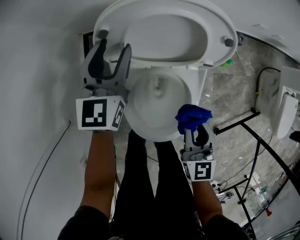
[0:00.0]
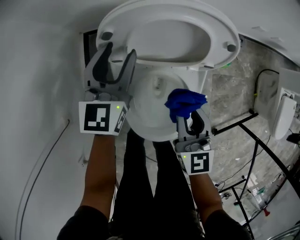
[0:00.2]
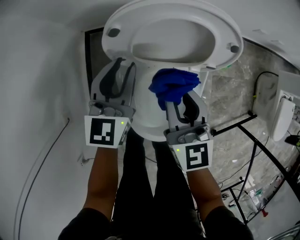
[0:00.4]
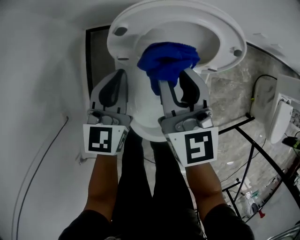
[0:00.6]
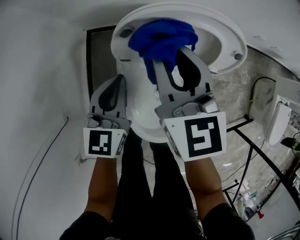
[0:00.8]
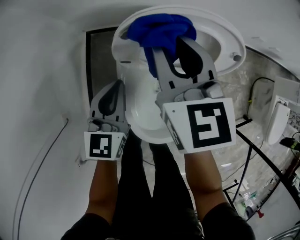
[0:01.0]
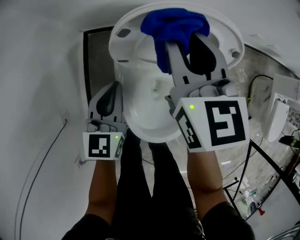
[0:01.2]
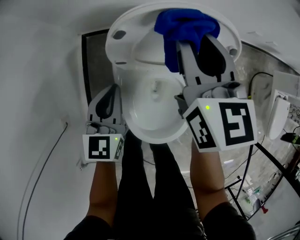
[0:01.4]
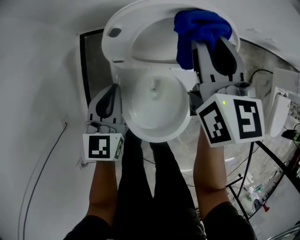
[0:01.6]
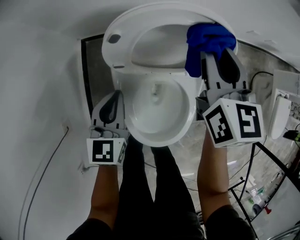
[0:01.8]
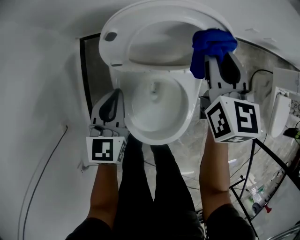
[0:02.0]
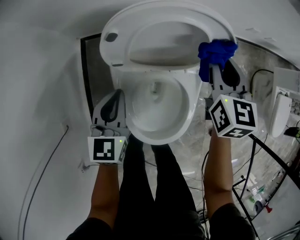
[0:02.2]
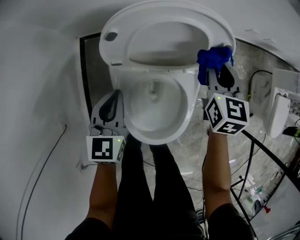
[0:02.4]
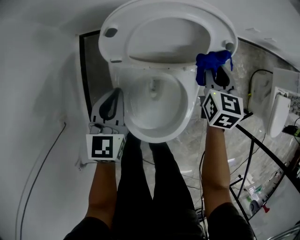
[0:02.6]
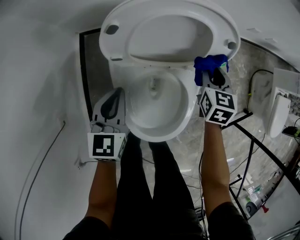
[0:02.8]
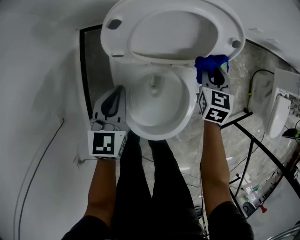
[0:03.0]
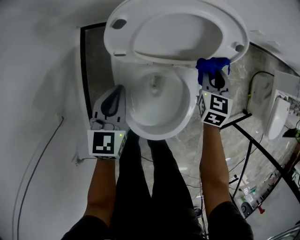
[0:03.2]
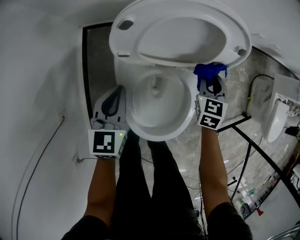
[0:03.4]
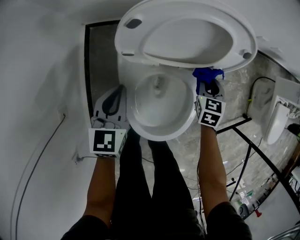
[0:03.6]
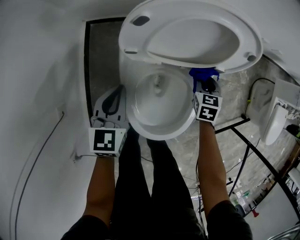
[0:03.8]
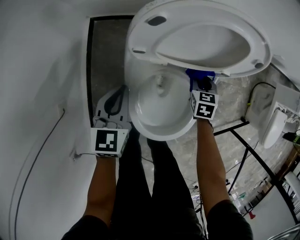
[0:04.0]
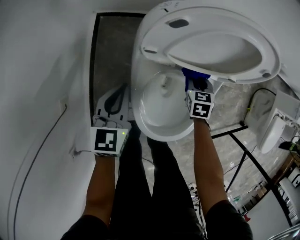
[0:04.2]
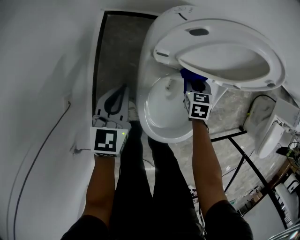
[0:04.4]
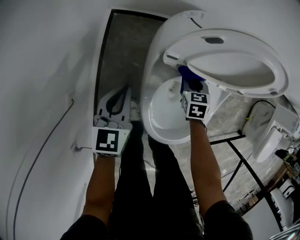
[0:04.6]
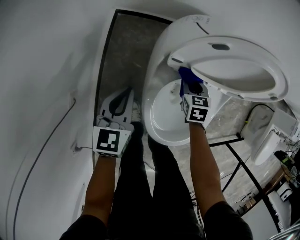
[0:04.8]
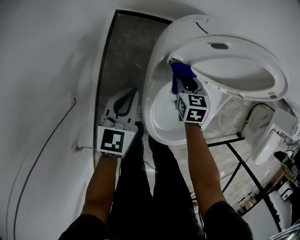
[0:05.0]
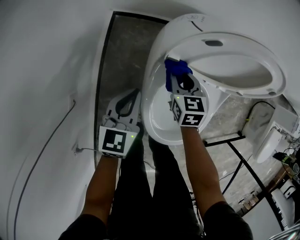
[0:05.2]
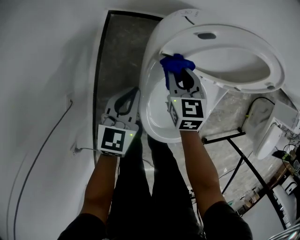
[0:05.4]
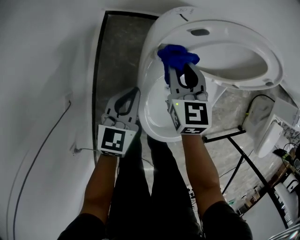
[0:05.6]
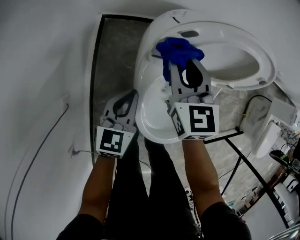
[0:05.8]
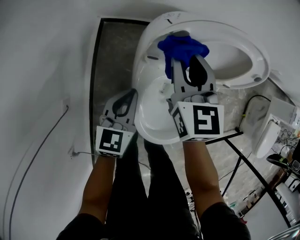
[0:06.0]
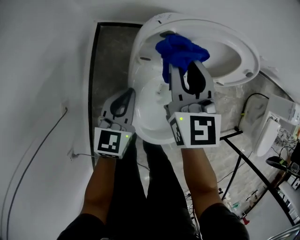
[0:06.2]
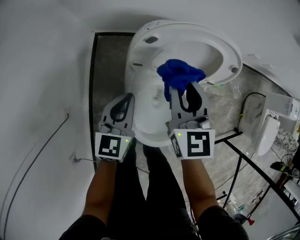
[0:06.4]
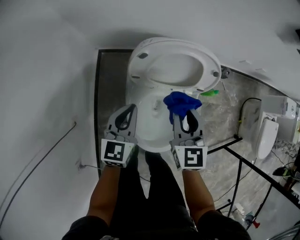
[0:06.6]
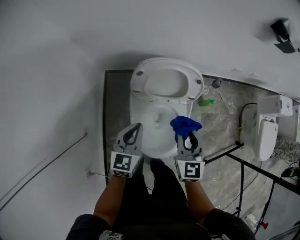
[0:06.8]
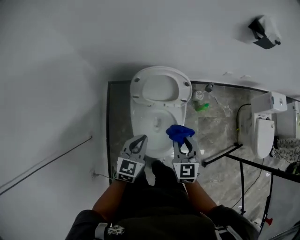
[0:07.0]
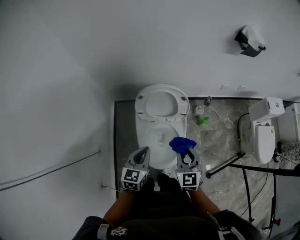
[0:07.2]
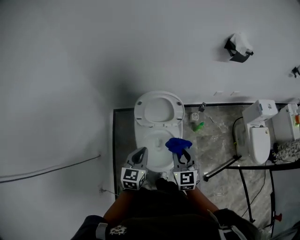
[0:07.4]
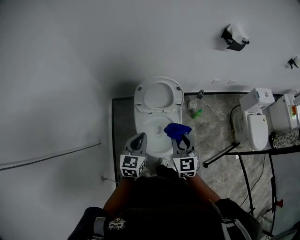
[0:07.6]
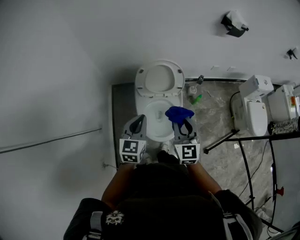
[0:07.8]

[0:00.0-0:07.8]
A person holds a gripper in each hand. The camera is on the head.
0:00.0 to 0:01.6: The left gripper is displaced backward by approximately 10 cm, and closes up. The right gripper moves forward and upward, some 25 cm.
0:01.6 to 0:03.2: The right gripper moves downward and to the right, about 25 cm, and changes its angle by approximately 30 degrees.
0:03.2 to 0:04.6: The right gripper moves to the left and downward, roughly 25 cm, and rotates roughly 30 degrees; the left gripper shifts roughly 10 cm to the left.
0:04.6 to 0:06.2: The right gripper travels upward by roughly 30 cm, and angles its fingers upward, by some 40 degrees, while the left gripper is displaced to the right by about 10 cm.
0:06.2 to 0:07.8: The right gripper travels backward, upward and to the right by approximately 35 cm; the left gripper shifts roughly 35 cm upward and backward.

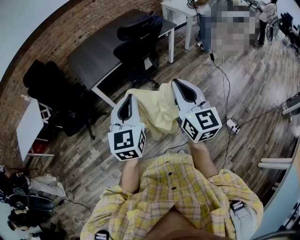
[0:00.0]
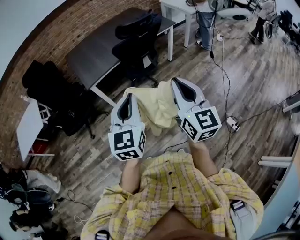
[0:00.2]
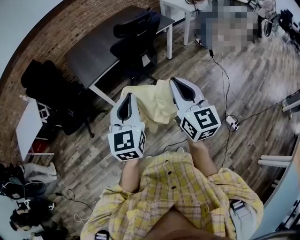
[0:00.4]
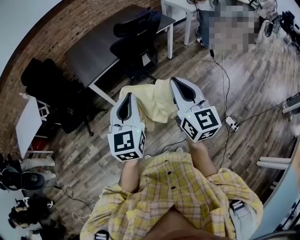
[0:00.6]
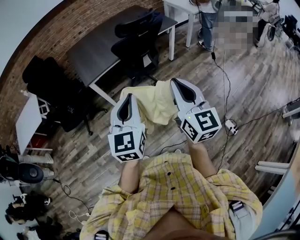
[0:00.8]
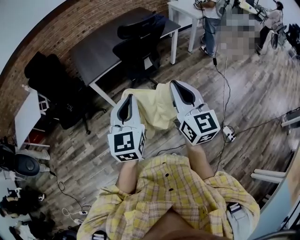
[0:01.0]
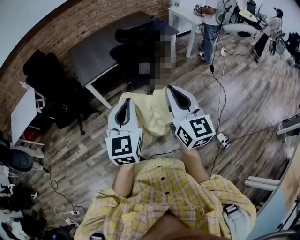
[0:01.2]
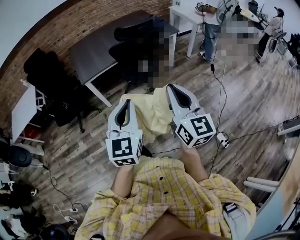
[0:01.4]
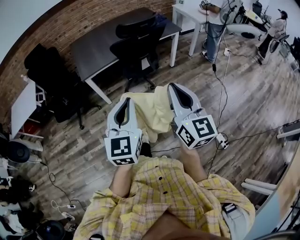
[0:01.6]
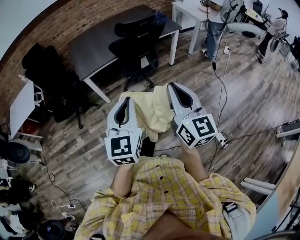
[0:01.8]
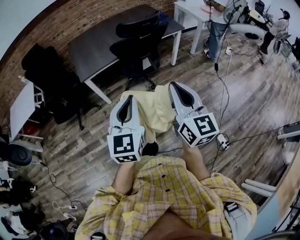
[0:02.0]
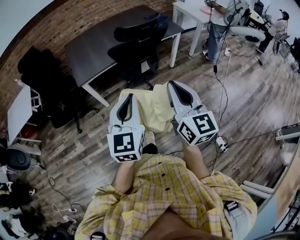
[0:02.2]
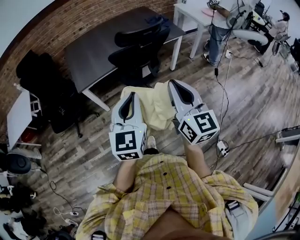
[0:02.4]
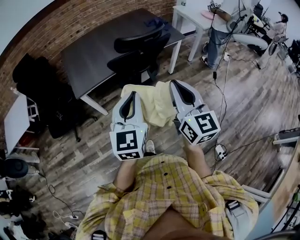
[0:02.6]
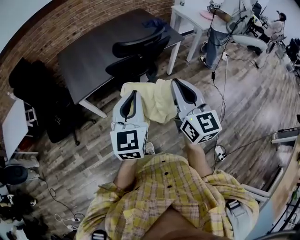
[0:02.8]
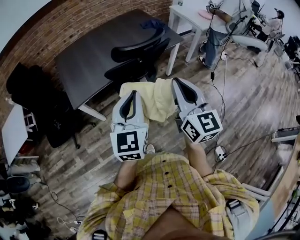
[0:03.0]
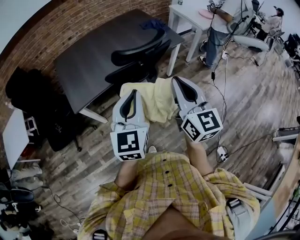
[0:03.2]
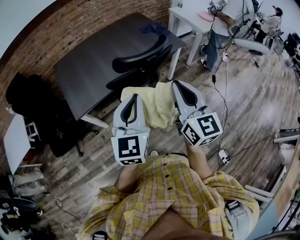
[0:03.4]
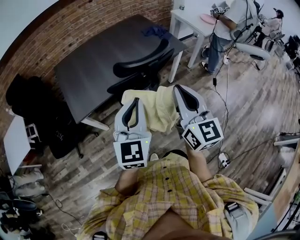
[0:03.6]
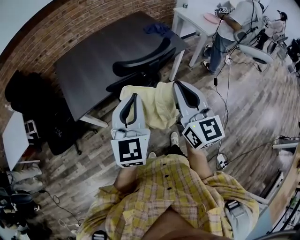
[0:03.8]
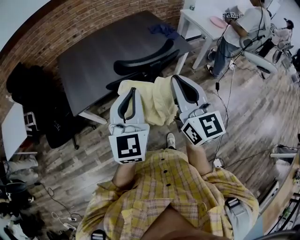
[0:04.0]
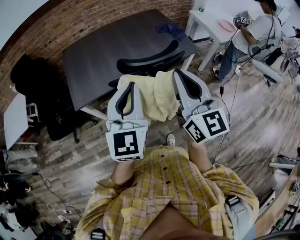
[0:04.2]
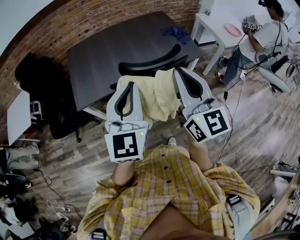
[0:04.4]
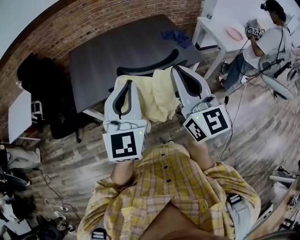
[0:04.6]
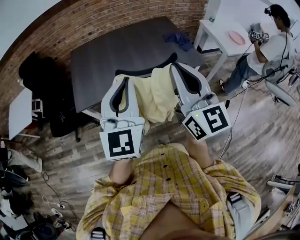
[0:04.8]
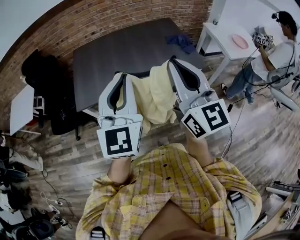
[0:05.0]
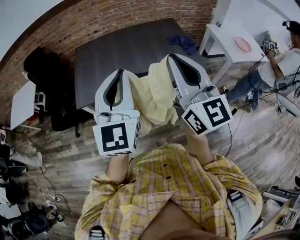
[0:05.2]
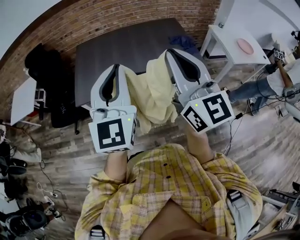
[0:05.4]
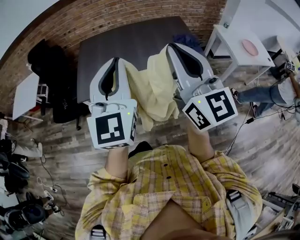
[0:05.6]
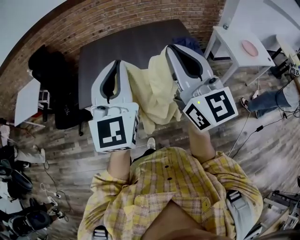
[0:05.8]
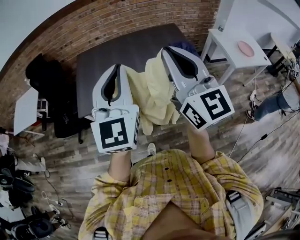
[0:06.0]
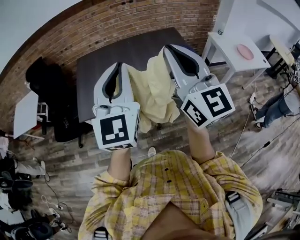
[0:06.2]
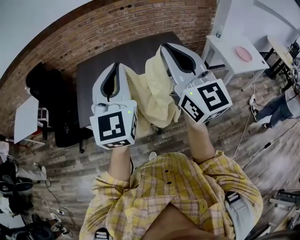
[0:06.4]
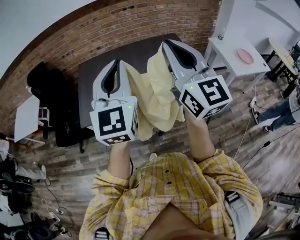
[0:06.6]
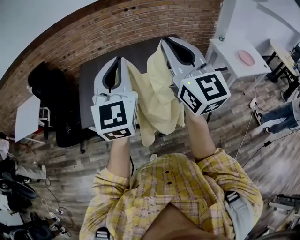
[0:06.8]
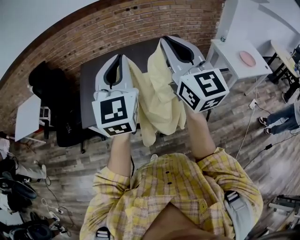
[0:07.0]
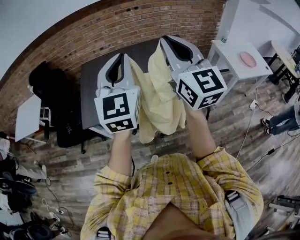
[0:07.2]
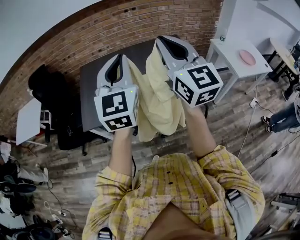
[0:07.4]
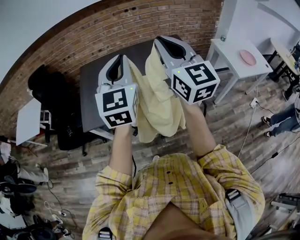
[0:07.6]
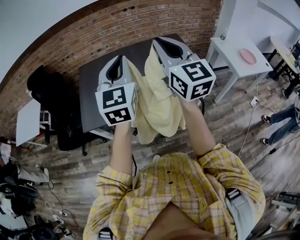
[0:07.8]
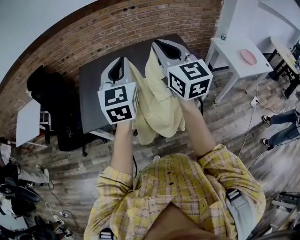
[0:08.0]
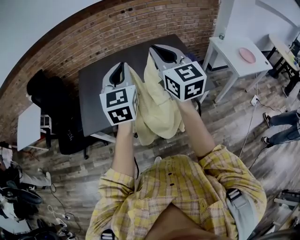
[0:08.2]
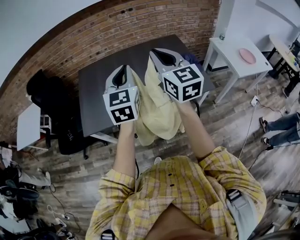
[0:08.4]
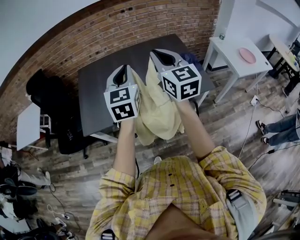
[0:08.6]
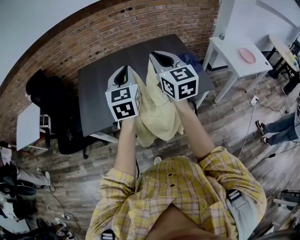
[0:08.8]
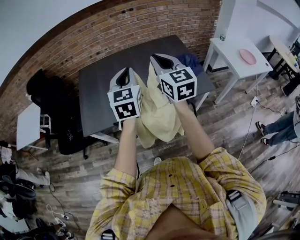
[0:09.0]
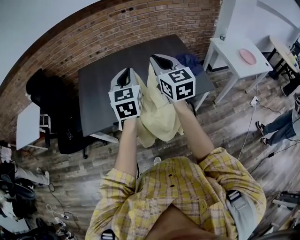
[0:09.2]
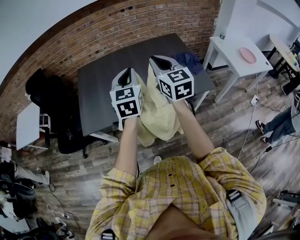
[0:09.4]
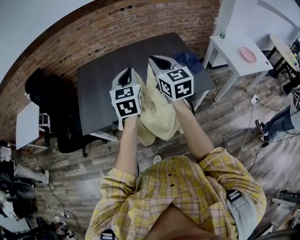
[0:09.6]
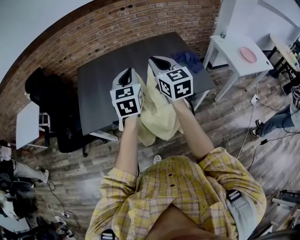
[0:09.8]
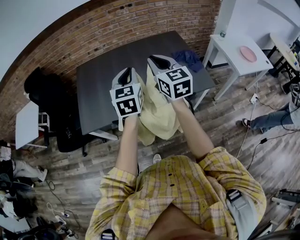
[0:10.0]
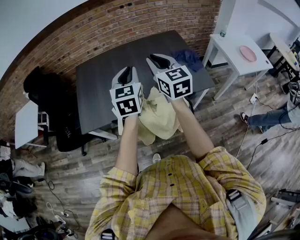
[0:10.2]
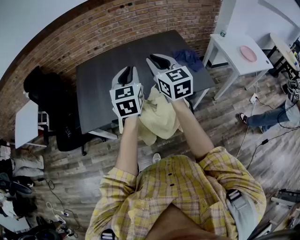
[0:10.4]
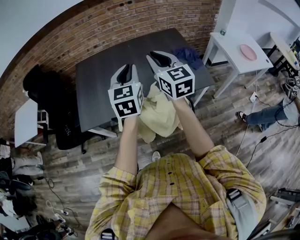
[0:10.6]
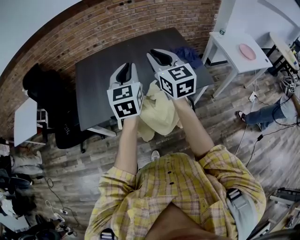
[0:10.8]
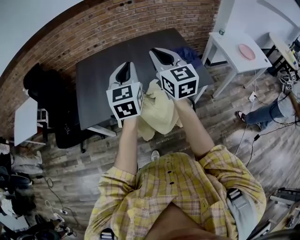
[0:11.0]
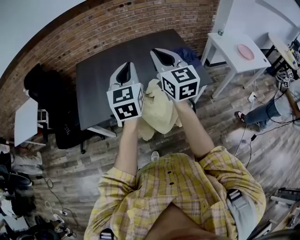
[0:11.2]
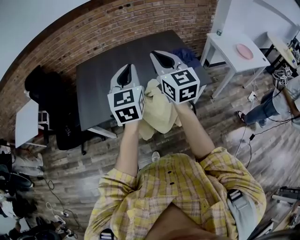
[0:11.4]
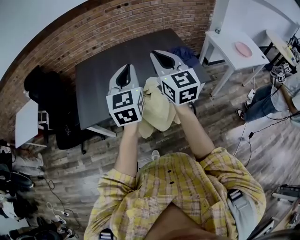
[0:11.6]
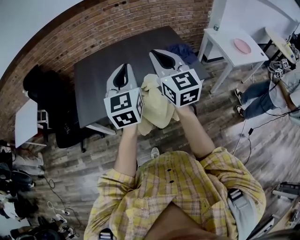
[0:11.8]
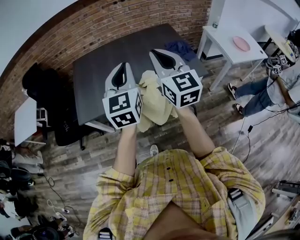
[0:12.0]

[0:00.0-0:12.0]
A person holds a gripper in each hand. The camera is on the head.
0:00.0 to 0:01.6: Both grippers travel together to the right, about 10 cm.
0:01.6 to 0:03.0: Both grippers travel together forward, some 30 cm.
0:03.0 to 0:04.4: The right gripper heads forward, covering roughly 15 cm, while the left gripper moves forward and upward, approximately 15 cm.
0:04.4 to 0:06.0: The two grippers go about 15 cm forward, upward and to the right.
0:06.0 to 0:07.6: The grippers both shift forward by about 15 cm.
0:07.6 to 0:09.0: The two grippers go roughly 15 cm downward and forward.
0:09.0 to 0:10.4: There are only small adjustments of the grippers.
0:10.4 to 0:12.0: Both grippers travel together backward and upward, some 15 cm.

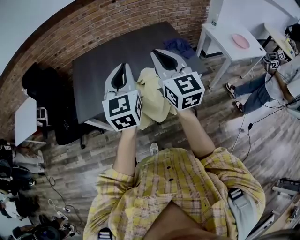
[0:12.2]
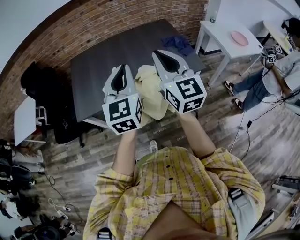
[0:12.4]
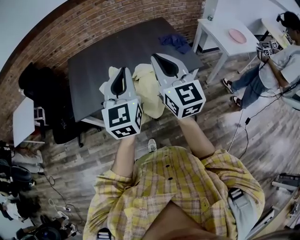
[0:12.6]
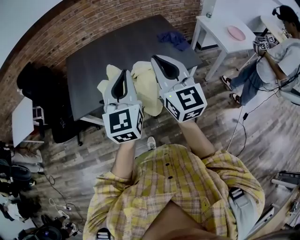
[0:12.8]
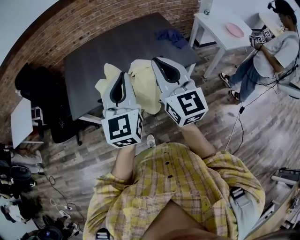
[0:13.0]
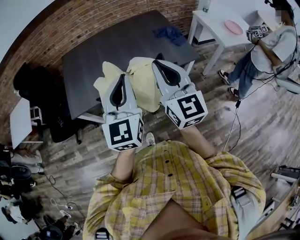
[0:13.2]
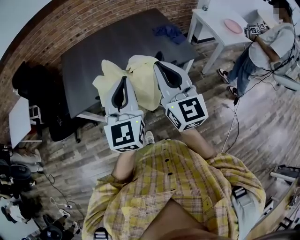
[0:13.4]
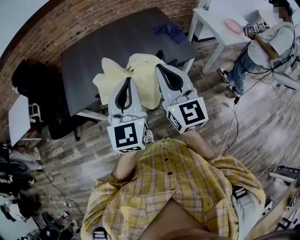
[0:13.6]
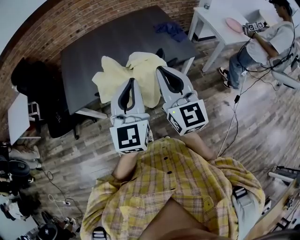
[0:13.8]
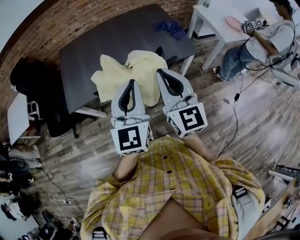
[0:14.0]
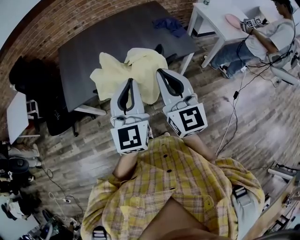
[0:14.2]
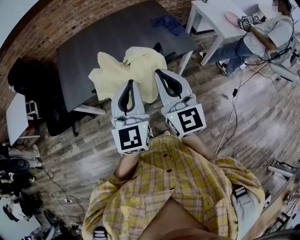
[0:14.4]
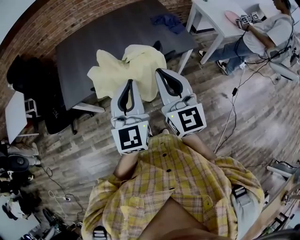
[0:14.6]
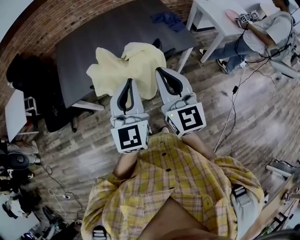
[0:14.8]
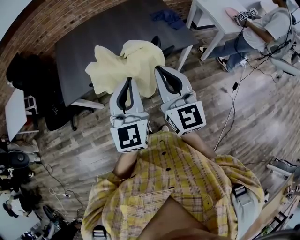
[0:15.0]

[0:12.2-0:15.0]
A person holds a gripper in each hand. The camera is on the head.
0:12.2 to 0:13.6: The grippers both shift backward by approximately 10 cm.
0:13.6 to 0:15.0: The grippers stay close to where they were, moving slightly.

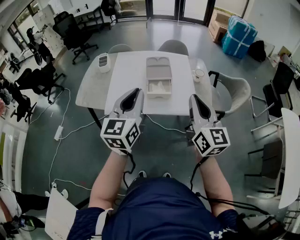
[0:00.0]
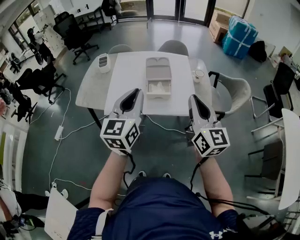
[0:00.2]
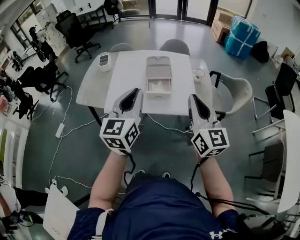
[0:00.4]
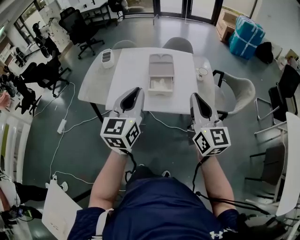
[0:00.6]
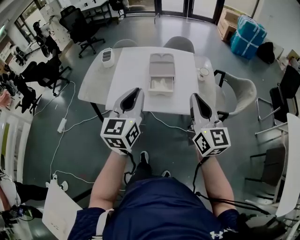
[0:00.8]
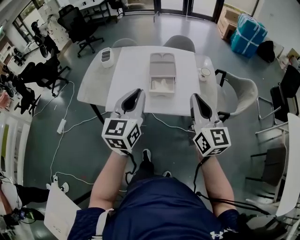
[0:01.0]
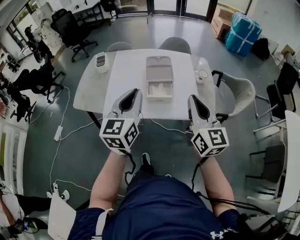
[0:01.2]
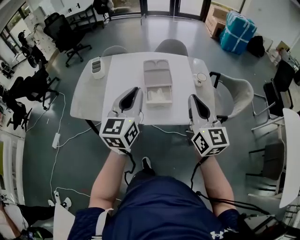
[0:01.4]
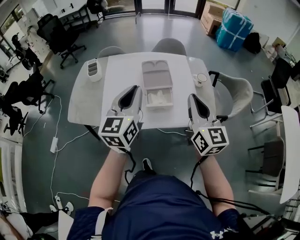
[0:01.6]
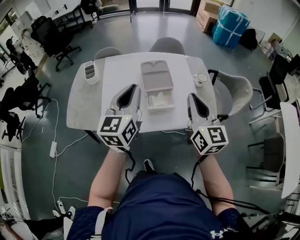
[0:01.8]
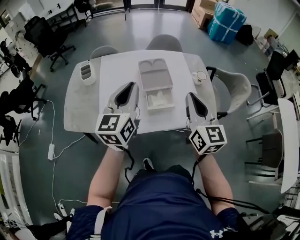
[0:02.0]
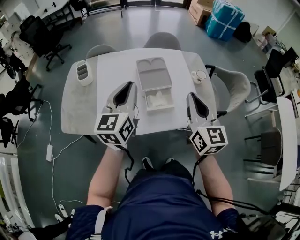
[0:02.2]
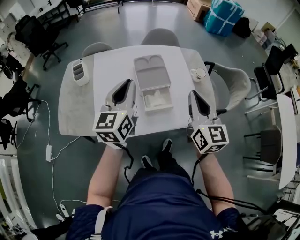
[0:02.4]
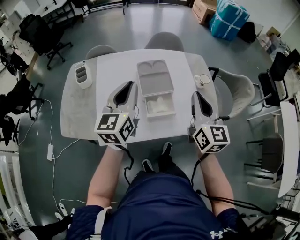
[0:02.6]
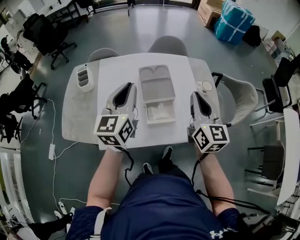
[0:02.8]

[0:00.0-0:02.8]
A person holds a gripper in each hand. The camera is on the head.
0:00.0 to 0:01.4: The grippers both shift forward by roughly 10 cm.
0:01.4 to 0:02.8: Both grippers travel together forward, about 20 cm.
